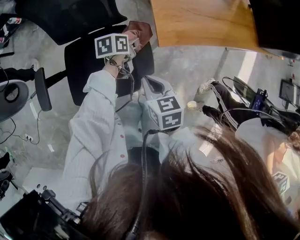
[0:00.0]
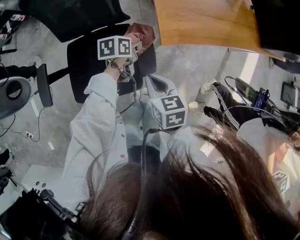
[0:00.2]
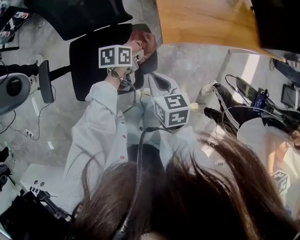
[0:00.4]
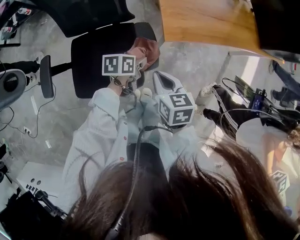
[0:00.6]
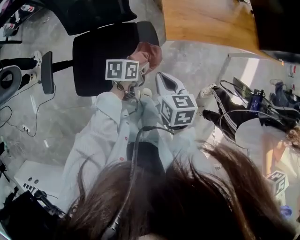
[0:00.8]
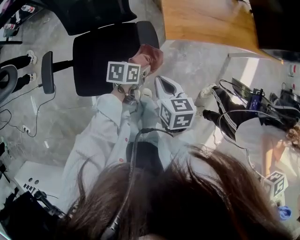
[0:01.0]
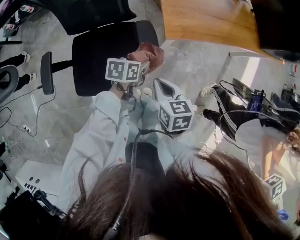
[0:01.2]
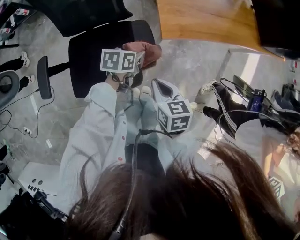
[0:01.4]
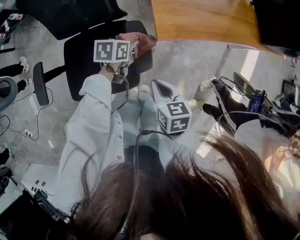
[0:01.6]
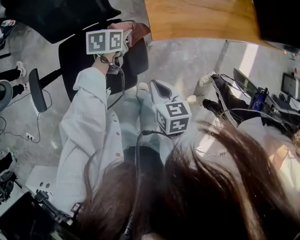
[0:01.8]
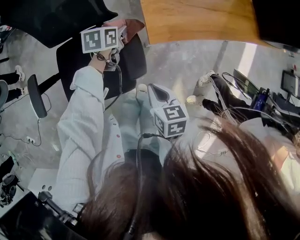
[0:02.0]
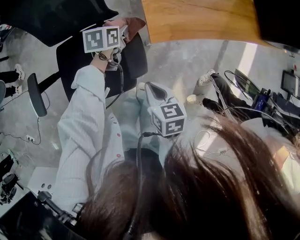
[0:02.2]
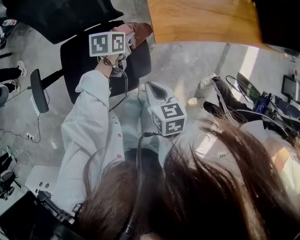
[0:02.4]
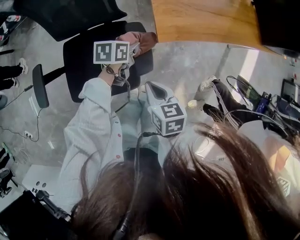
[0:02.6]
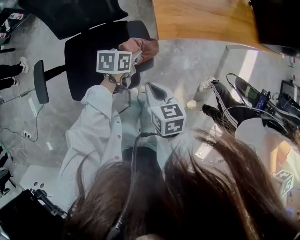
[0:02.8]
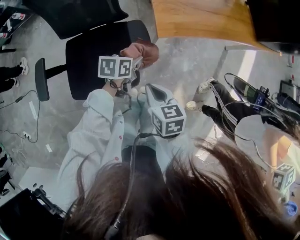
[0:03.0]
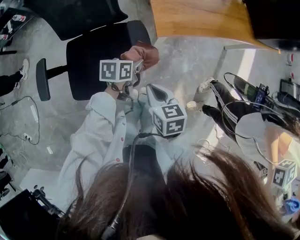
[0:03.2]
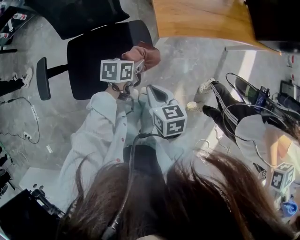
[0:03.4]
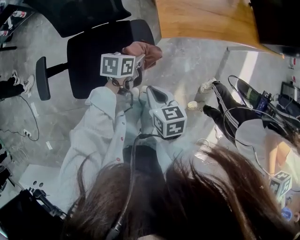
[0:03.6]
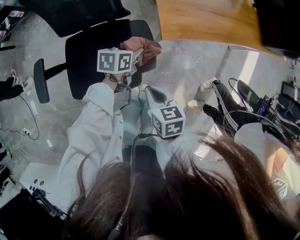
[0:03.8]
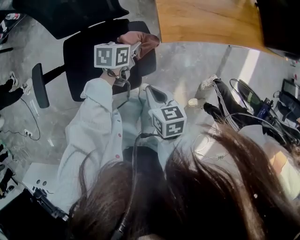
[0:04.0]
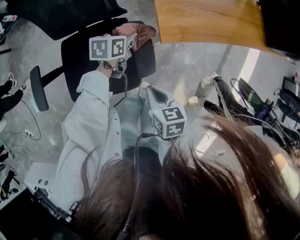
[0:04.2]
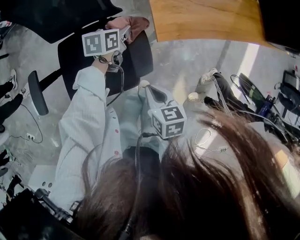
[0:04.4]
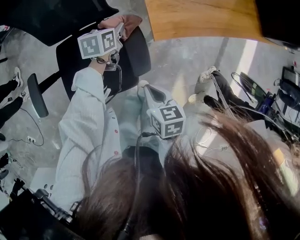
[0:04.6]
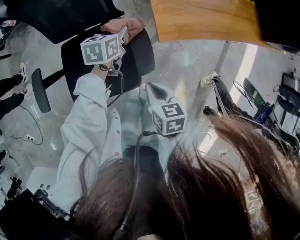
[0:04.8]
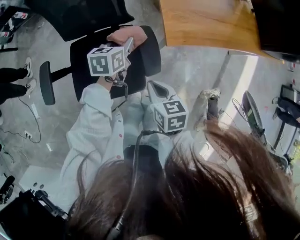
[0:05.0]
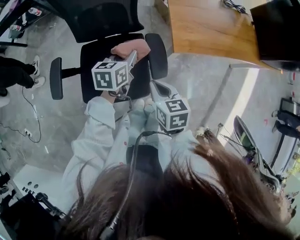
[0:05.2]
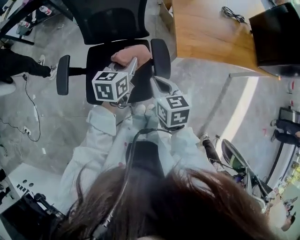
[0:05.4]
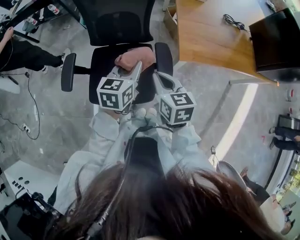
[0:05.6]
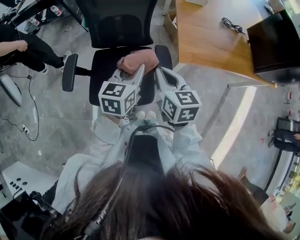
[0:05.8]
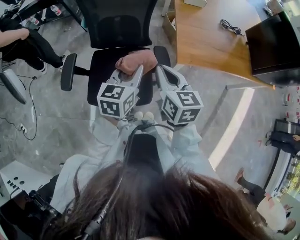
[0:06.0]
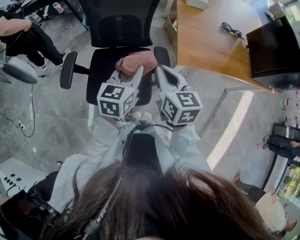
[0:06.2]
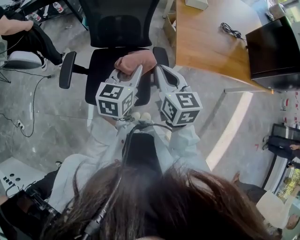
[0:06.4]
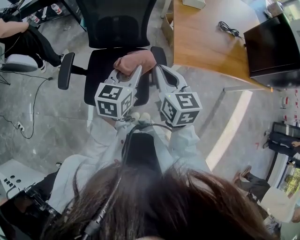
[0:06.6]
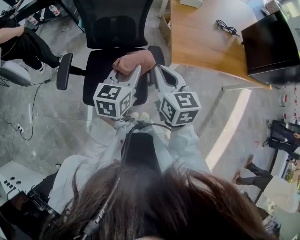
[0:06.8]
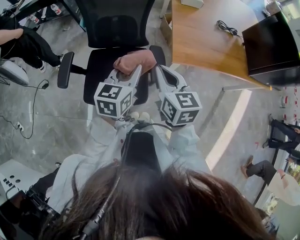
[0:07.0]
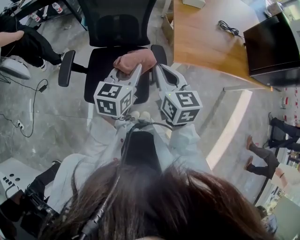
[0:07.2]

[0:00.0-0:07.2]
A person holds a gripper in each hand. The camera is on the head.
0:00.0 to 0:01.4: The left gripper heads backward, covering about 10 cm. Meanwhile the right gripper moves about 5 cm.
0:01.4 to 0:02.8: The left gripper travels forward and back again, roughly 15 cm each way.
0:02.8 to 0:04.4: The left gripper heads forward, covering about 10 cm.
0:04.4 to 0:05.8: The right gripper moves upward, about 20 cm, and rotates approximately 30 degrees, while the left gripper heads upward and backward, covering some 35 cm, and rotates some 30 degrees.
0:05.8 to 0:07.2: The grippers make only small movements.

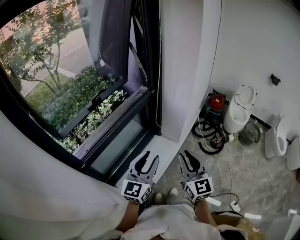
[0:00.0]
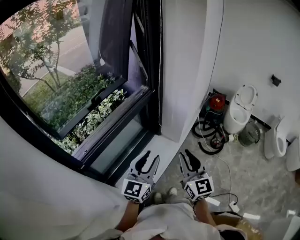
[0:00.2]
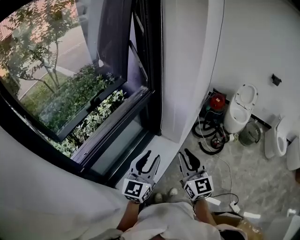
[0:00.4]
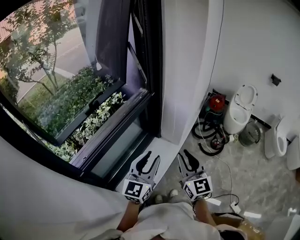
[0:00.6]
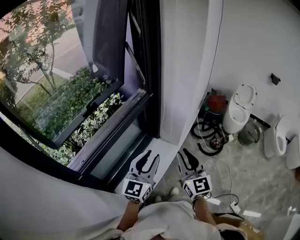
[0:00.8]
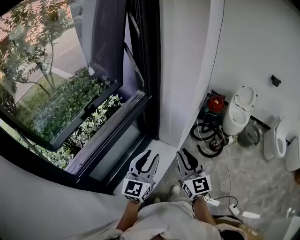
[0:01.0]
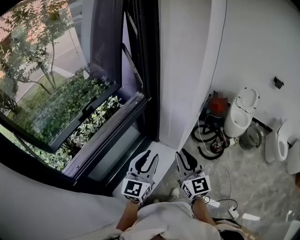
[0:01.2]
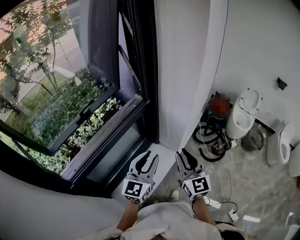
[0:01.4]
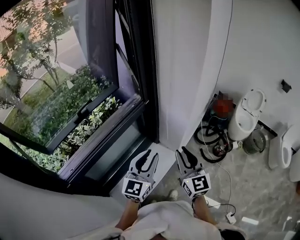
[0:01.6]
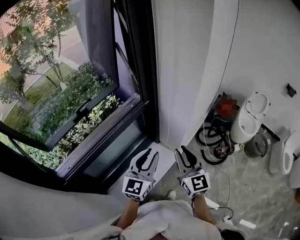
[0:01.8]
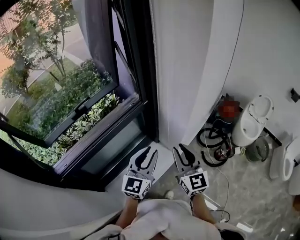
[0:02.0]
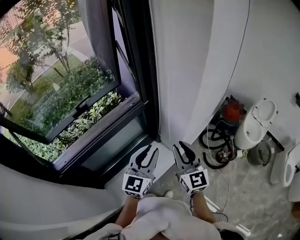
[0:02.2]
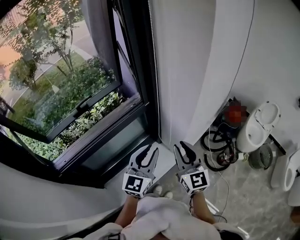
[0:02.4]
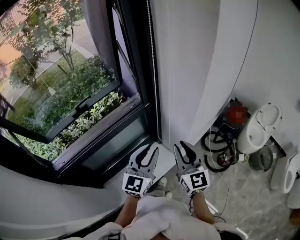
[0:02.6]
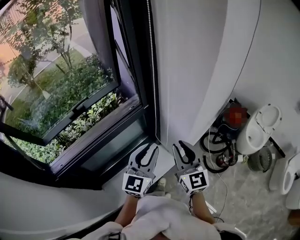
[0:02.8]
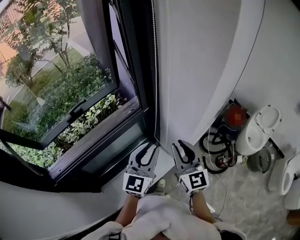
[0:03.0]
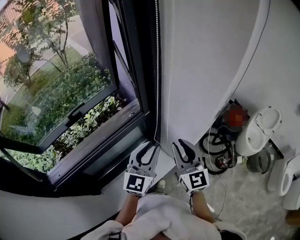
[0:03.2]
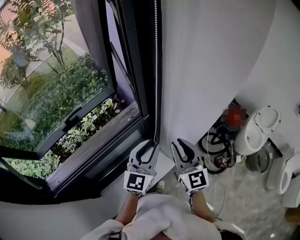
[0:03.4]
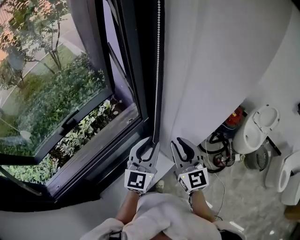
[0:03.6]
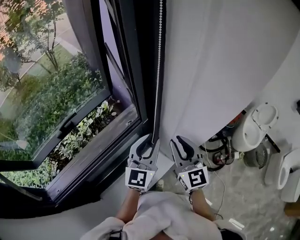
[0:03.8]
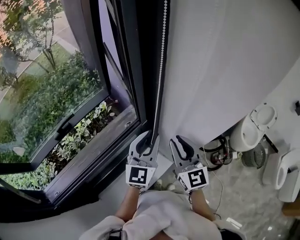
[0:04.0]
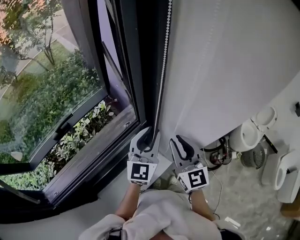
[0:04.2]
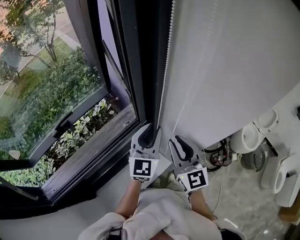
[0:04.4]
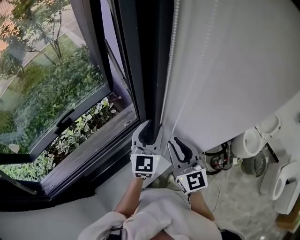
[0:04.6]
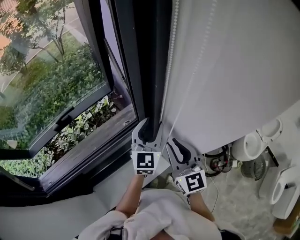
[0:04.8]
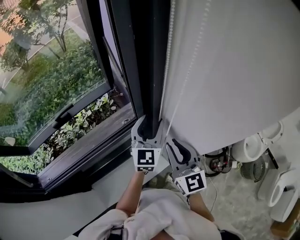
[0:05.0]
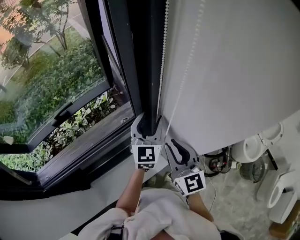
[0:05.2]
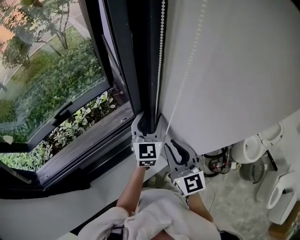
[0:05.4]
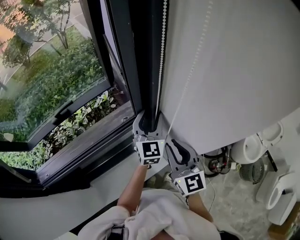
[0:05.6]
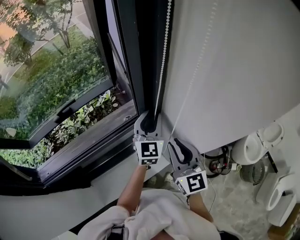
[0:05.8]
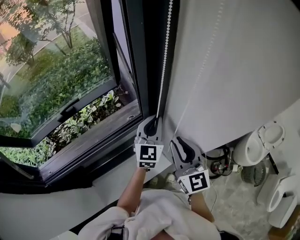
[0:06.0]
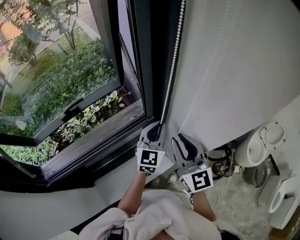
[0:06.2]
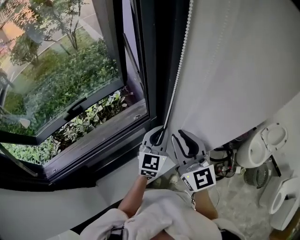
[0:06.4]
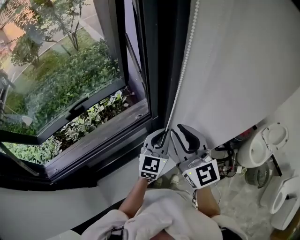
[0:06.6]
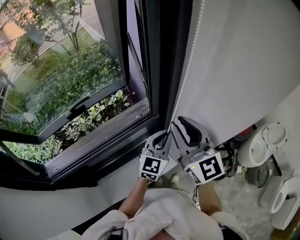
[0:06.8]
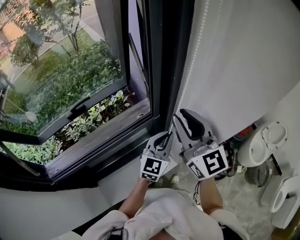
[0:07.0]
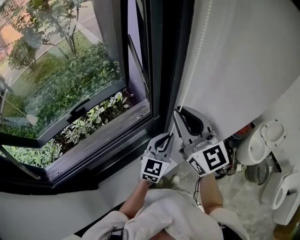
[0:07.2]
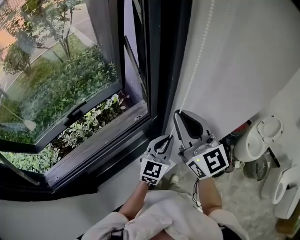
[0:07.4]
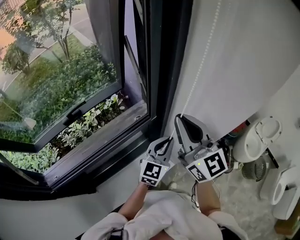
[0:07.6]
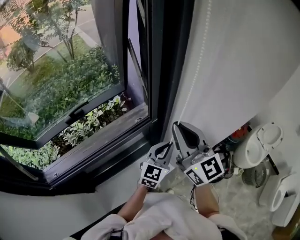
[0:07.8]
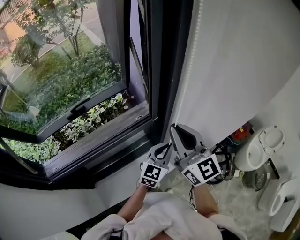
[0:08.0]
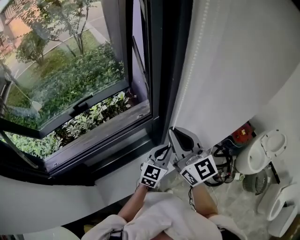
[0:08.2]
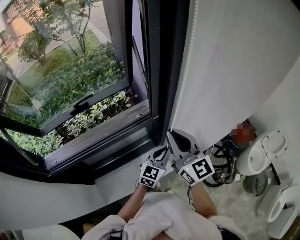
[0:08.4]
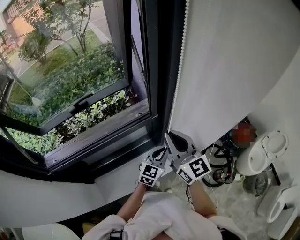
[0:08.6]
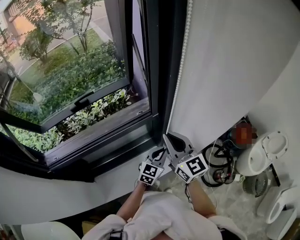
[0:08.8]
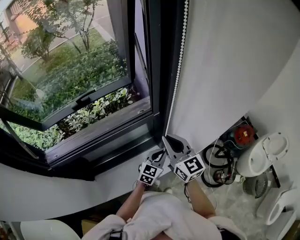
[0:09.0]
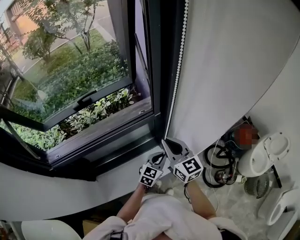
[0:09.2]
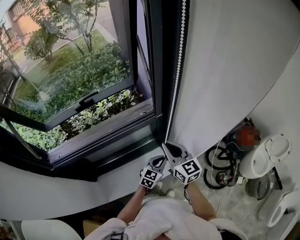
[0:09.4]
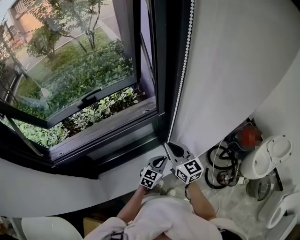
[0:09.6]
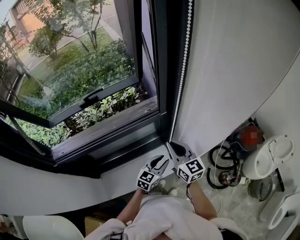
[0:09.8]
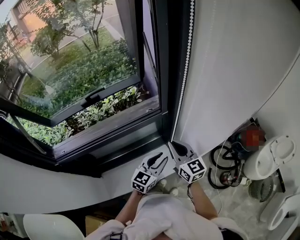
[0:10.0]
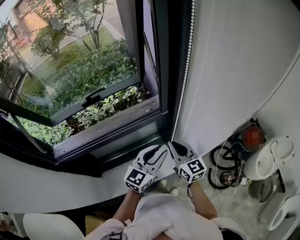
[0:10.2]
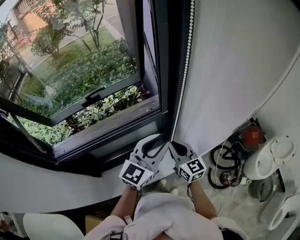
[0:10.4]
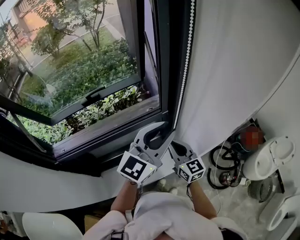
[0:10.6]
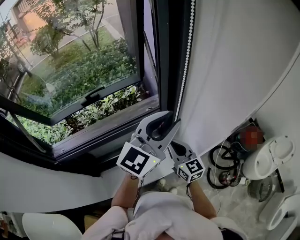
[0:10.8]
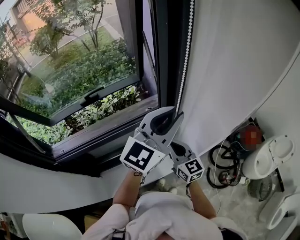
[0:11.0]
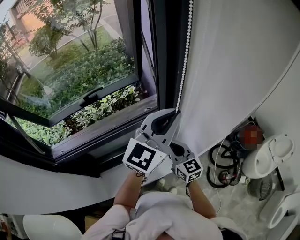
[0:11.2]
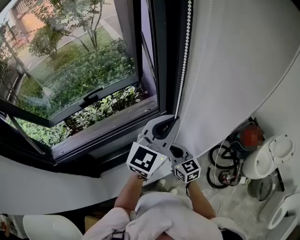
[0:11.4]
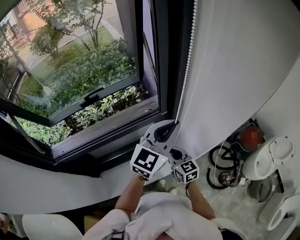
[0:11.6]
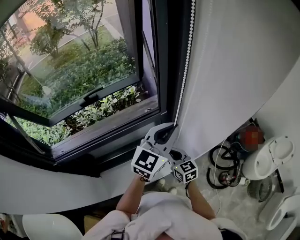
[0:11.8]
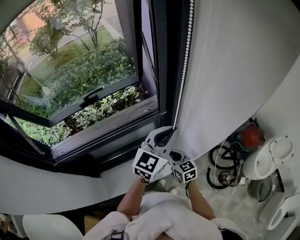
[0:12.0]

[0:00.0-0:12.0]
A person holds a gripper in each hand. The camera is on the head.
0:00.0 to 0:01.6: Both grippers move forward, about 15 cm.
0:01.6 to 0:03.0: The right gripper shifts approximately 15 cm forward, while the left gripper shifts approximately 15 cm forward and to the right.
0:03.0 to 0:04.4: The left gripper is displaced forward by about 15 cm. Meanwhile the right gripper travels forward by roughly 10 cm.
0:04.4 to 0:06.0: The left gripper closes.
0:06.0 to 0:07.6: The left gripper travels backward by approximately 10 cm, while the right gripper travels upward by roughly 10 cm.
0:07.6 to 0:09.0: The two grippers go approximately 15 cm downward.
0:09.0 to 0:10.4: The right gripper moves downward, approximately 5 cm. The left gripper travels upward by roughly 20 cm, changes its angle by about 20 degrees, and opens.
0:10.4 to 0:12.0: The left gripper travels upward and back again, approximately 10 cm each way, and closes up, while the right gripper goes some 10 cm downward.

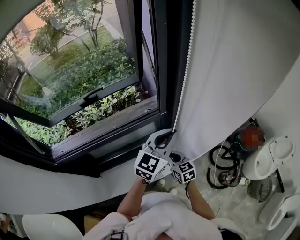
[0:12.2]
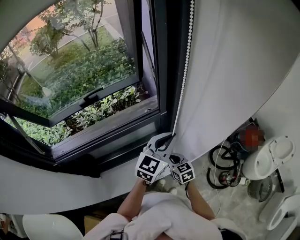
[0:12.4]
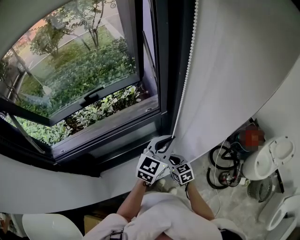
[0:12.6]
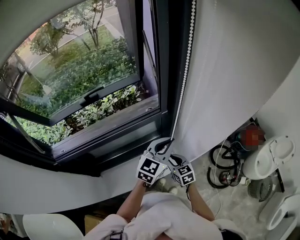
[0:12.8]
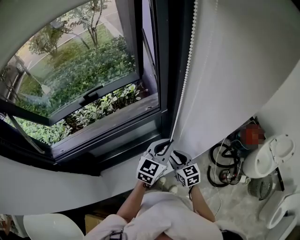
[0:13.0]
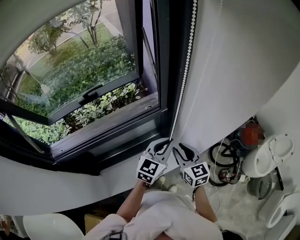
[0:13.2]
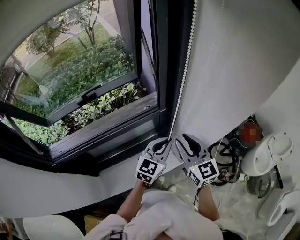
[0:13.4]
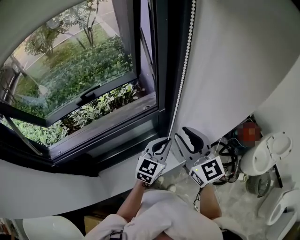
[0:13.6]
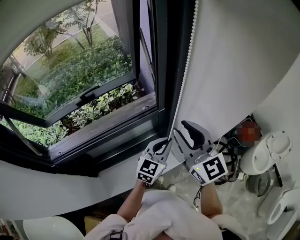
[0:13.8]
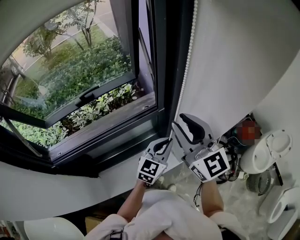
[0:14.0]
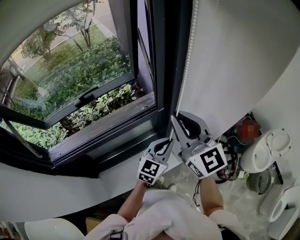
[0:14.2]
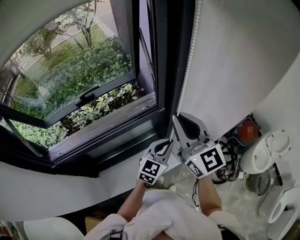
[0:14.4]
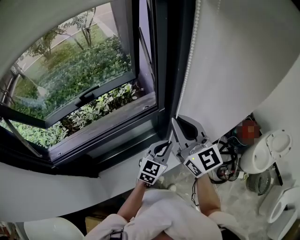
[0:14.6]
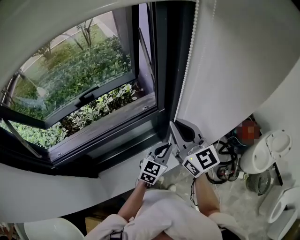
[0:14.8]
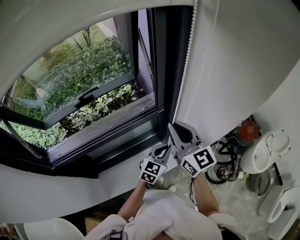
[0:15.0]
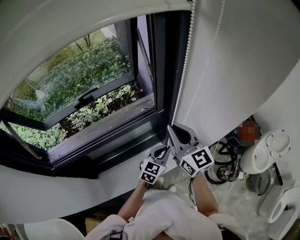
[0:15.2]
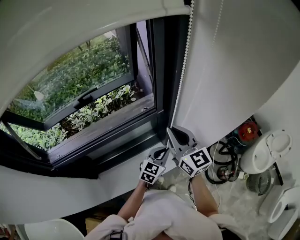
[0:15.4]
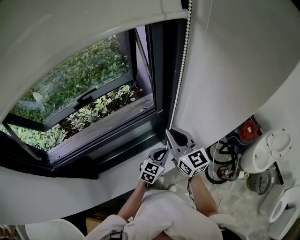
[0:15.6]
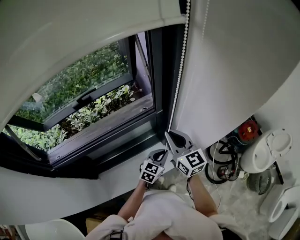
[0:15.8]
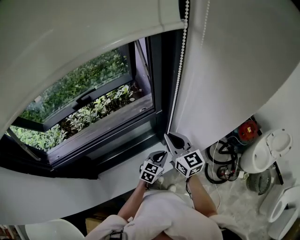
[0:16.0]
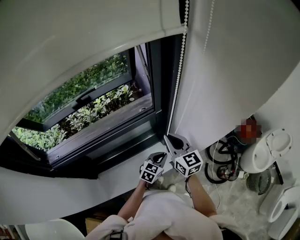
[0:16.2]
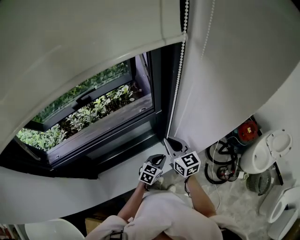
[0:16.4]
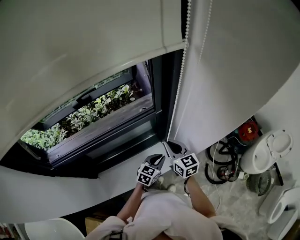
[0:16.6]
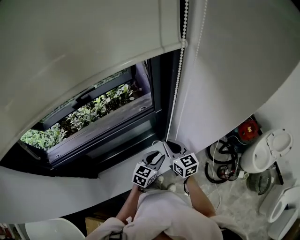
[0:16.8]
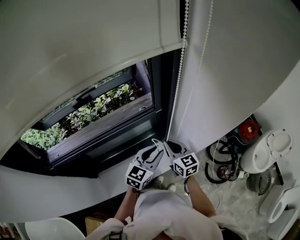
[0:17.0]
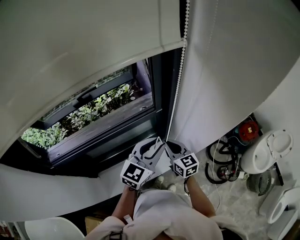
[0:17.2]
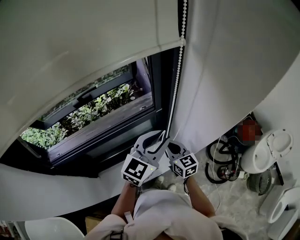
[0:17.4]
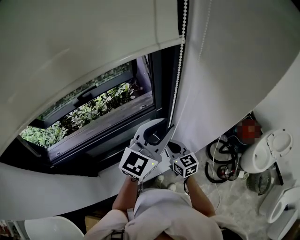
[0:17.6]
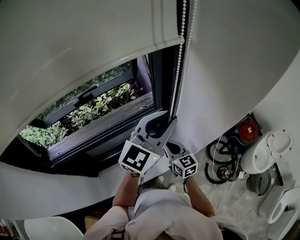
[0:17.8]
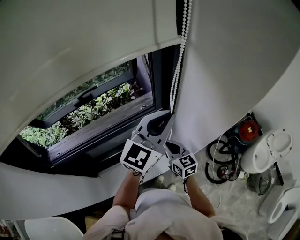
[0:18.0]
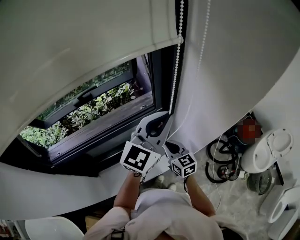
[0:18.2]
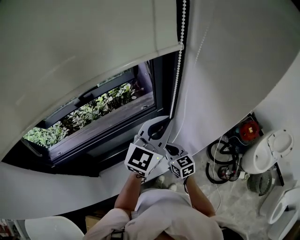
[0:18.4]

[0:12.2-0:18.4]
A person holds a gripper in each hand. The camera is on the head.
0:12.2 to 0:13.8: The left gripper shifts approximately 5 cm downward. Meanwhile the right gripper goes roughly 30 cm upward, angles its fingers upward, by roughly 30 degrees, and opens.
0:13.8 to 0:15.4: Both grippers move downward, roughly 10 cm. The right gripper closes its fingers.
0:15.4 to 0:16.8: The left gripper moves roughly 10 cm downward and comes back, and opens. Meanwhile the right gripper moves downward, about 15 cm.
0:16.8 to 0:18.4: The left gripper shifts about 30 cm upward, swivels roughly 30 degrees, and closes.
